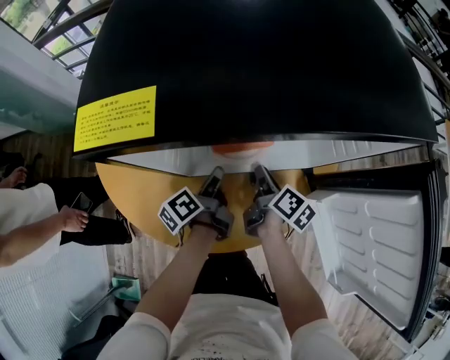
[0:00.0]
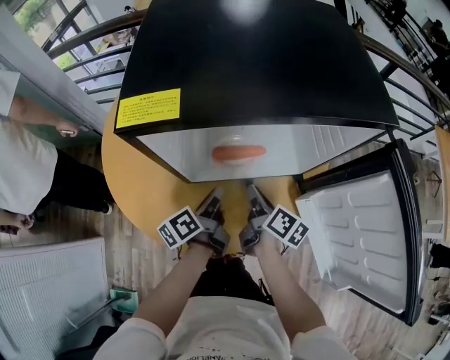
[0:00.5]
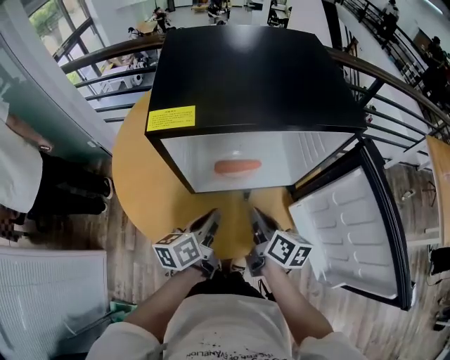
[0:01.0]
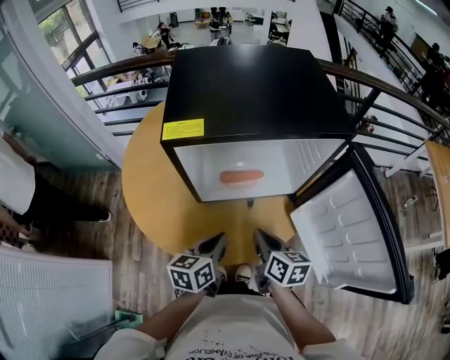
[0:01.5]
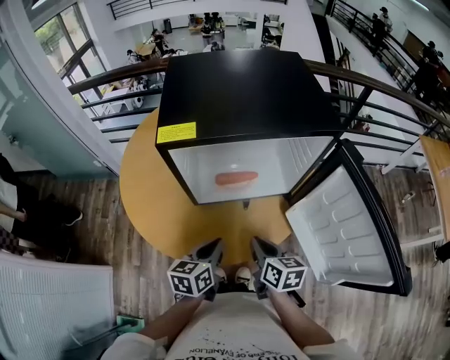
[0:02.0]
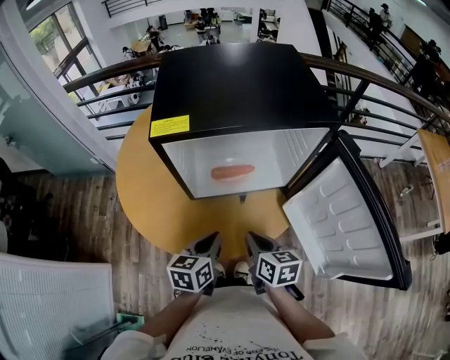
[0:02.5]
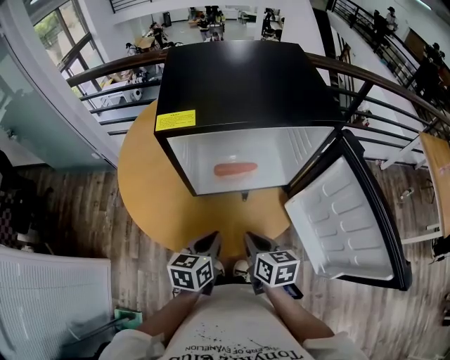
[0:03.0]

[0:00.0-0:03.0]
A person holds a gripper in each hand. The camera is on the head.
0:00.0 to 0:01.5: The right gripper ends up approximately 20 cm from where it was, and turns by about 30 degrees.

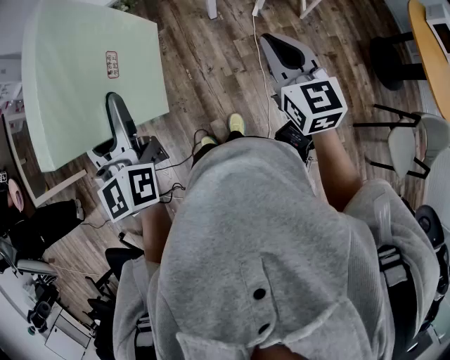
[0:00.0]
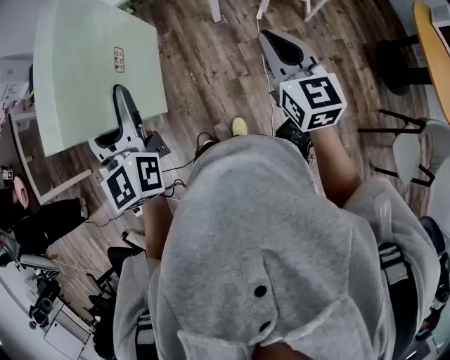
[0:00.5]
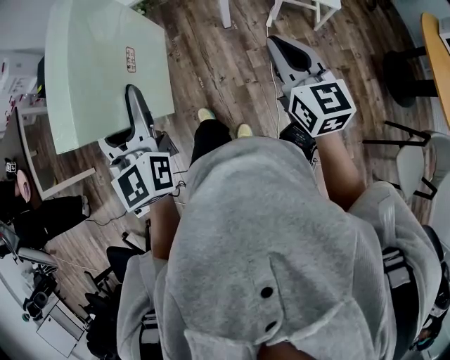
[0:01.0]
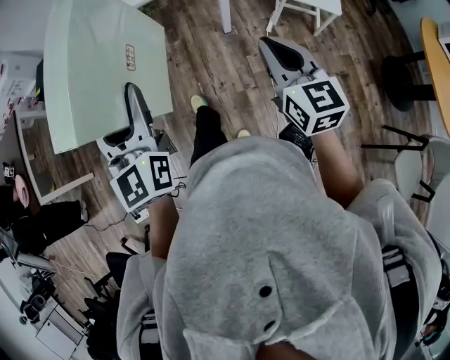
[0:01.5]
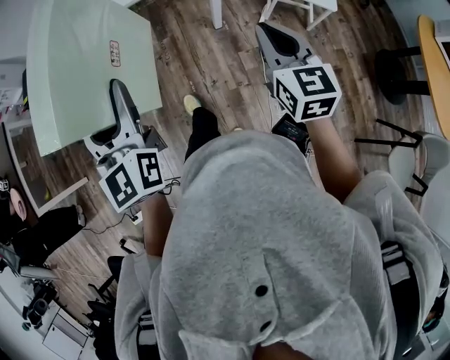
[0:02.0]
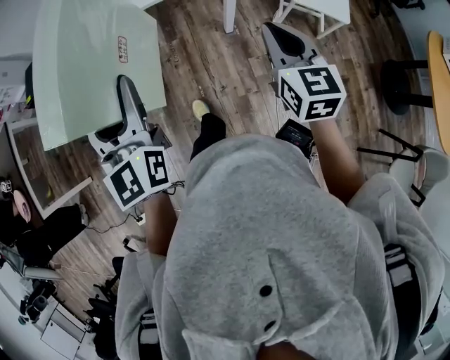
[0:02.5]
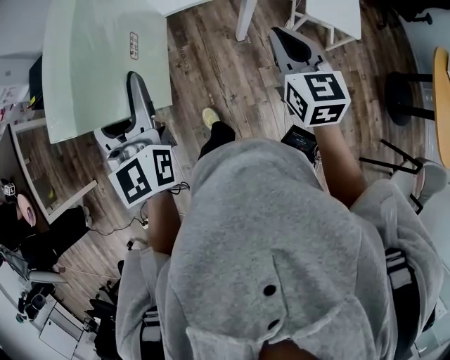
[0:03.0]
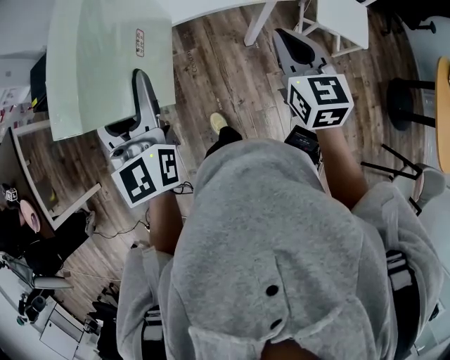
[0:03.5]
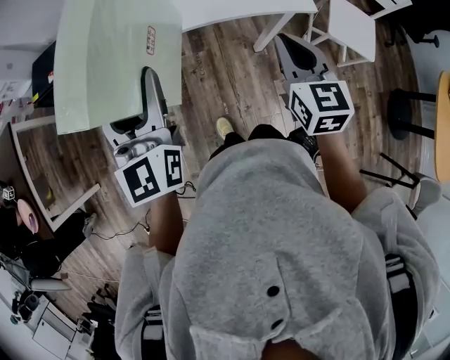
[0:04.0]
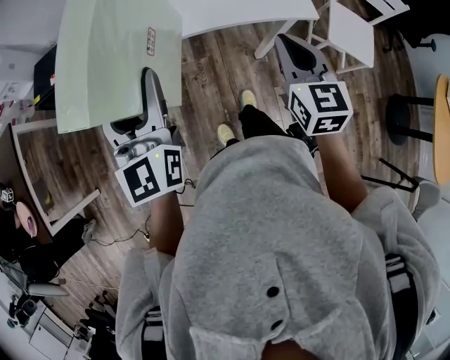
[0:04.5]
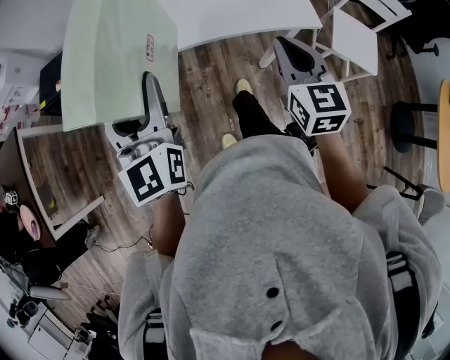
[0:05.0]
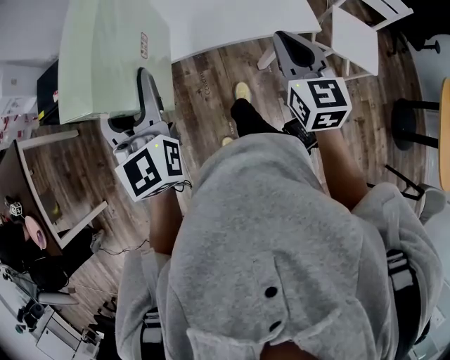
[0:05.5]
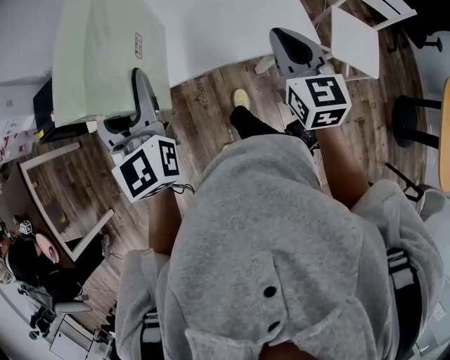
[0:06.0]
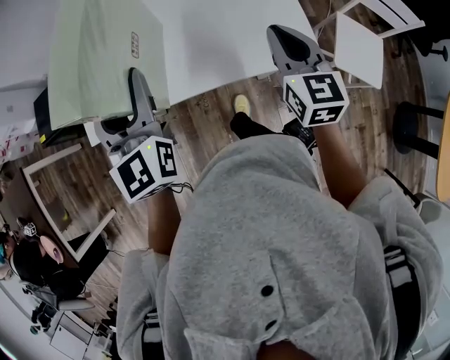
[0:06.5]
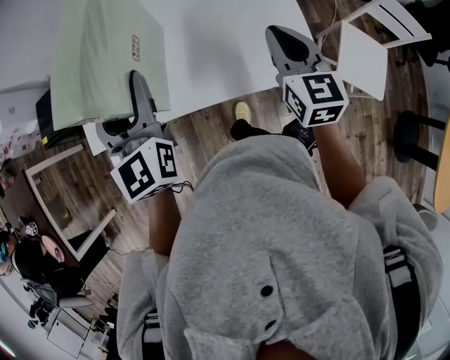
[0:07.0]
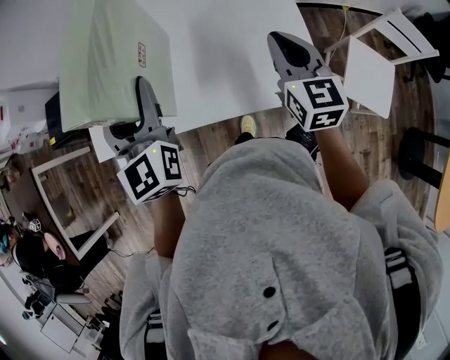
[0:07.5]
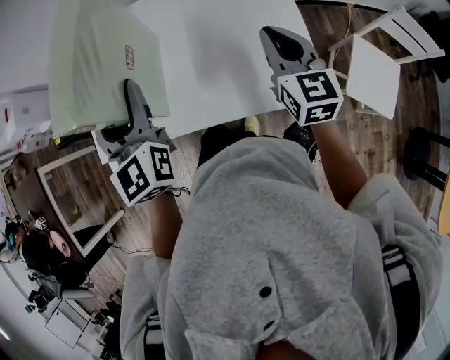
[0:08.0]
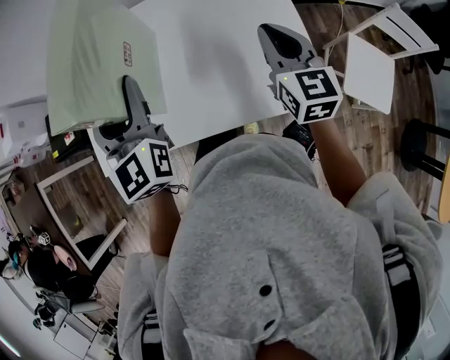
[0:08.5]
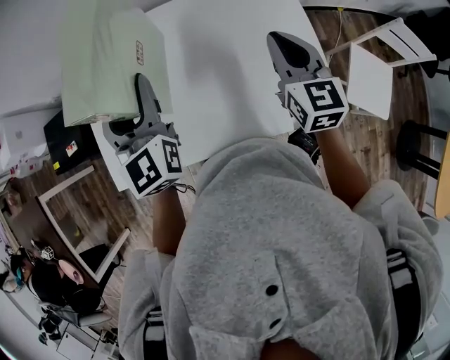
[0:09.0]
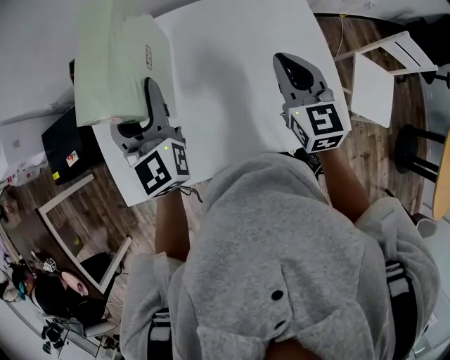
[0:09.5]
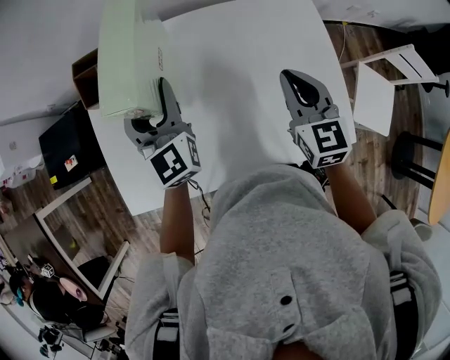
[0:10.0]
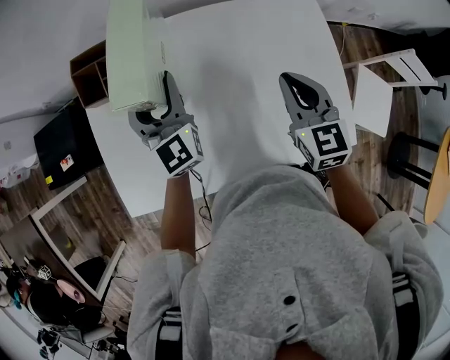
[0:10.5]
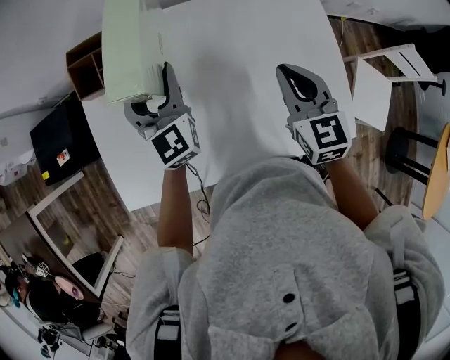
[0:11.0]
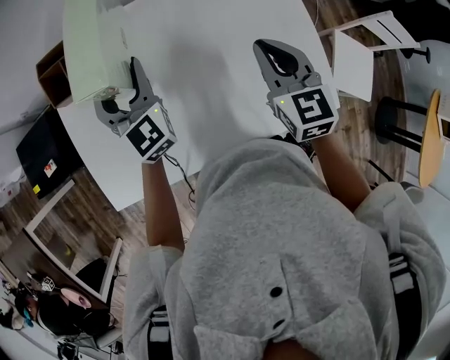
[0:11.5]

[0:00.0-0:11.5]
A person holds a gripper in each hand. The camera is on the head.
0:00.0 to 0:02.0: The two grippers go some 10 cm forward.
0:02.0 to 0:04.0: Both grippers move forward and to the left, roughly 30 cm.
0:04.0 to 0:06.0: Both grippers move forward, roughly 15 cm.
0:06.0 to 0:07.5: The grippers both shift forward and to the right by about 15 cm.
0:07.5 to 0:09.5: The grippers both shift forward and to the left by approximately 20 cm.
0:09.5 to 0:11.5: The left gripper heads downward, covering about 10 cm.

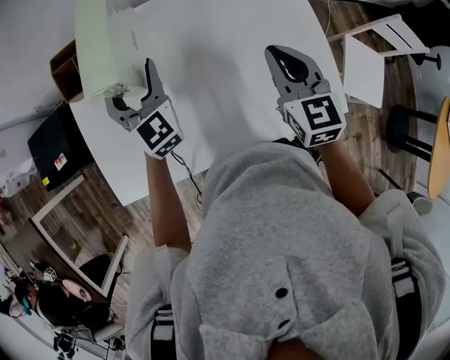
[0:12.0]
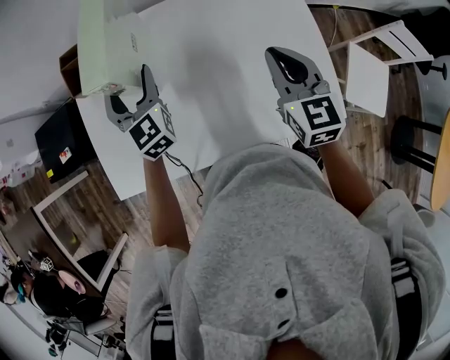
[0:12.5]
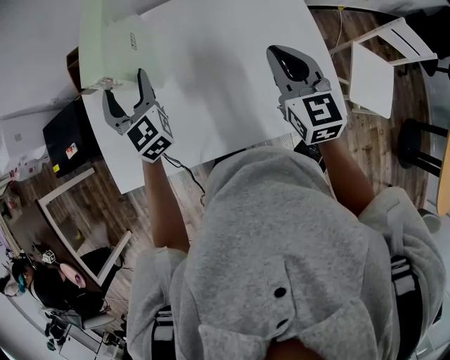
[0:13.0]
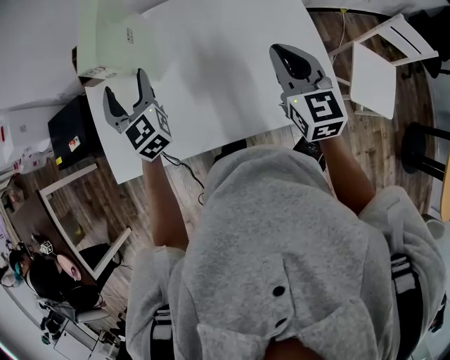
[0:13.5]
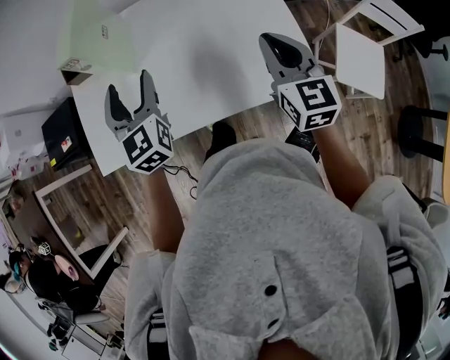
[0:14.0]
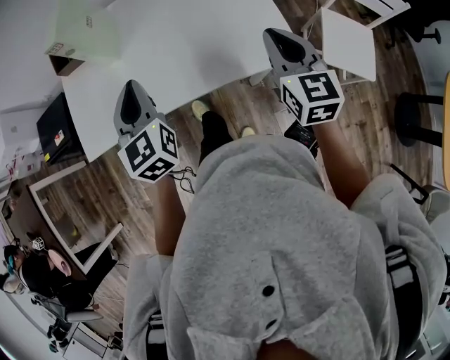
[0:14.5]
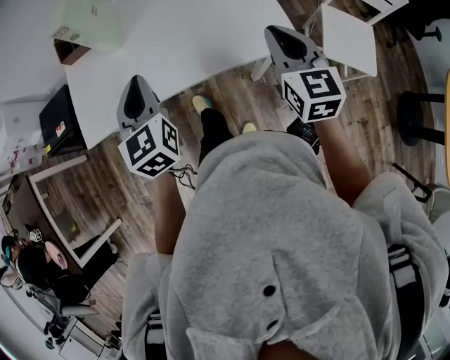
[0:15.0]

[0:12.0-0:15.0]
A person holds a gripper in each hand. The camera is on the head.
0:12.0 to 0:13.5: The right gripper travels backward and to the right by roughly 10 cm. Meanwhile the left gripper is displaced backward by roughly 10 cm.
0:13.5 to 0:15.0: The right gripper shifts about 20 cm backward; the left gripper is displaced backward and to the right by roughly 30 cm, and closes.

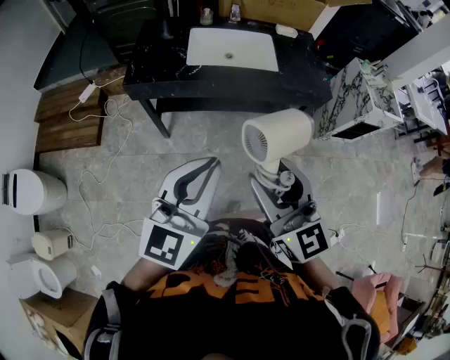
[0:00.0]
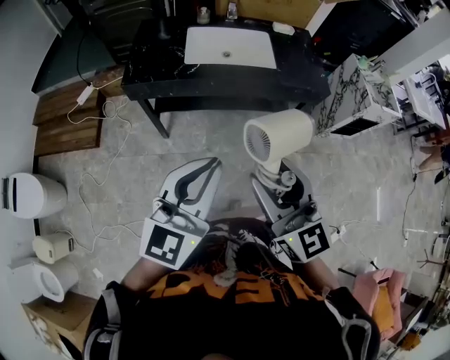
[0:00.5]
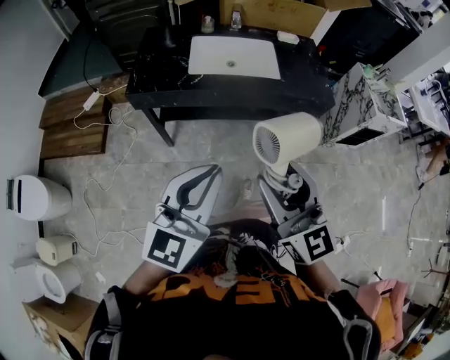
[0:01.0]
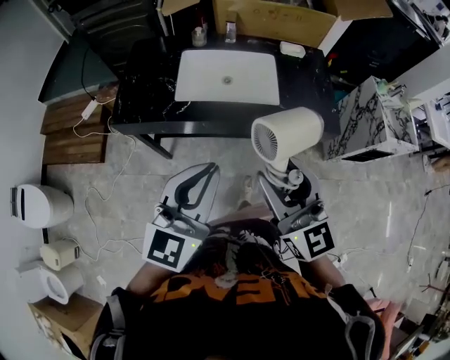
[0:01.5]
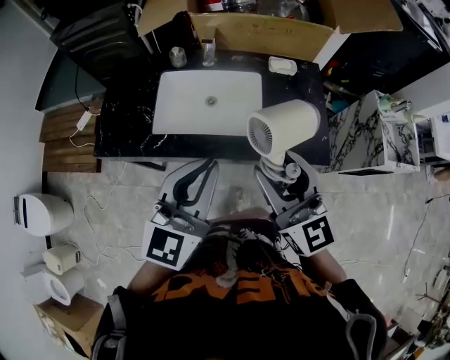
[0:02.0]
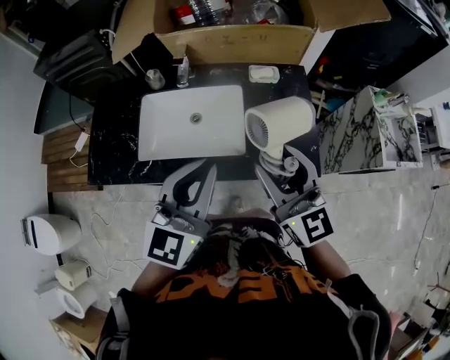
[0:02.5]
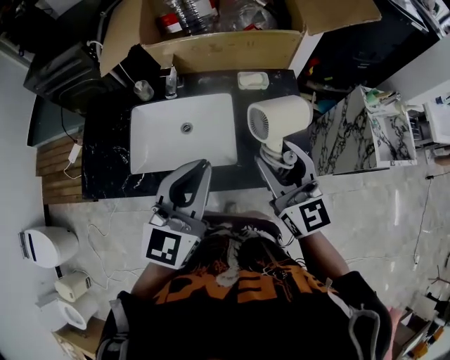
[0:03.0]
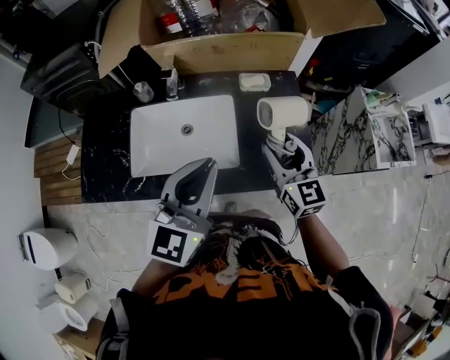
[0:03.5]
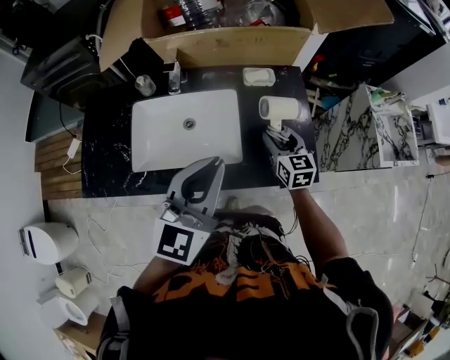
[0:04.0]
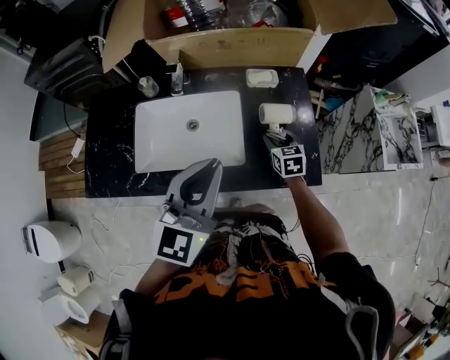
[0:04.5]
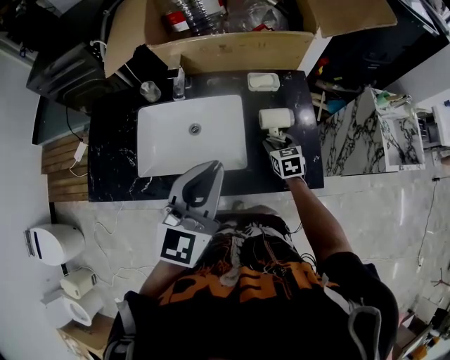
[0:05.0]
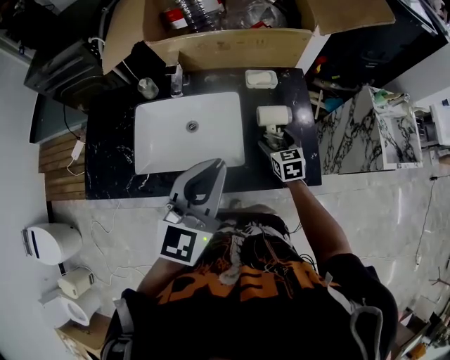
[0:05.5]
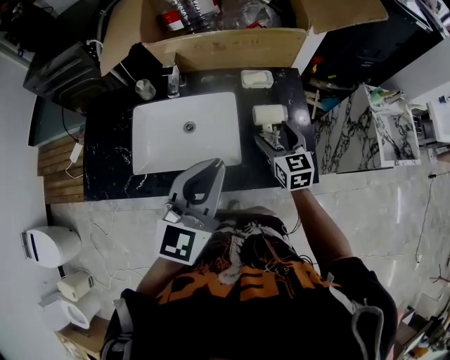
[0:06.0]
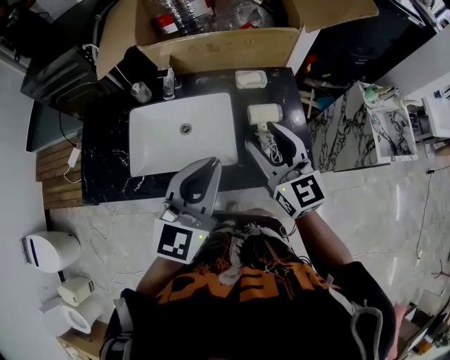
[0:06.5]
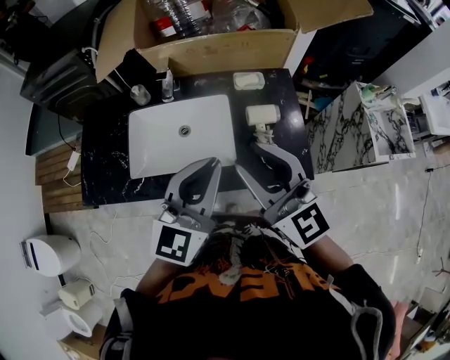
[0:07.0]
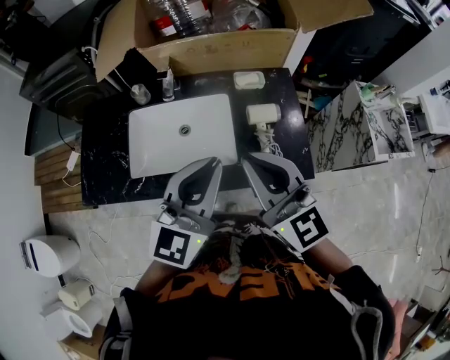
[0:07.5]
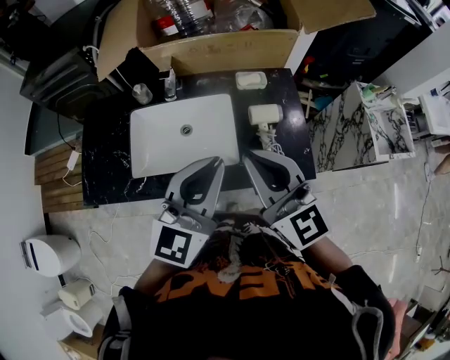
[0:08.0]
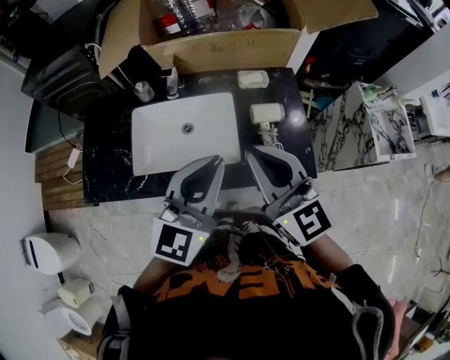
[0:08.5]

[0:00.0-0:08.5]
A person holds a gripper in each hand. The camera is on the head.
0:00.0 to 0:02.0: The two grippers travel together, forward and to the right, about 40 cm.
0:02.0 to 0:04.0: The left gripper is displaced forward and to the right by about 15 cm, while the right gripper travels downward, forward and to the right by about 35 cm, and changes its angle by about 30 degrees.
0:04.0 to 0:06.5: The right gripper heads upward, covering some 15 cm, and swivels about 20 degrees.
0:06.5 to 0:08.5: The right gripper moves upward, backward and to the left, some 10 cm, and closes its fingers.
